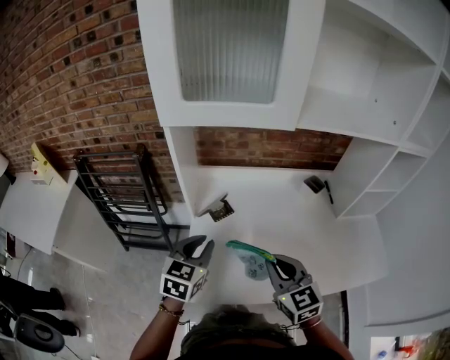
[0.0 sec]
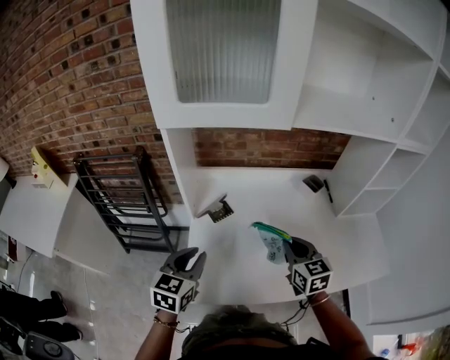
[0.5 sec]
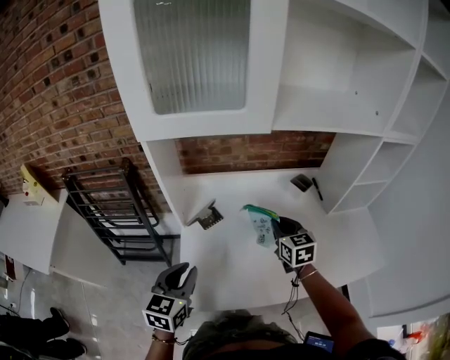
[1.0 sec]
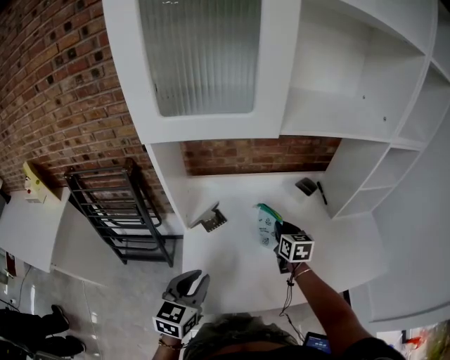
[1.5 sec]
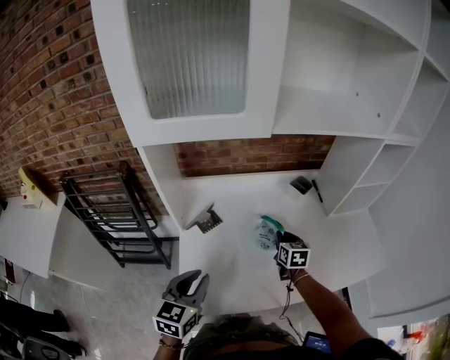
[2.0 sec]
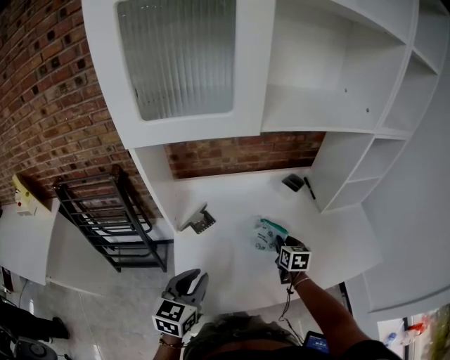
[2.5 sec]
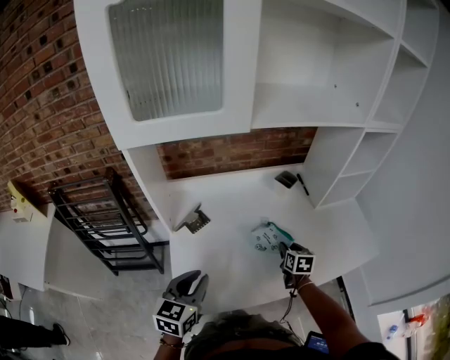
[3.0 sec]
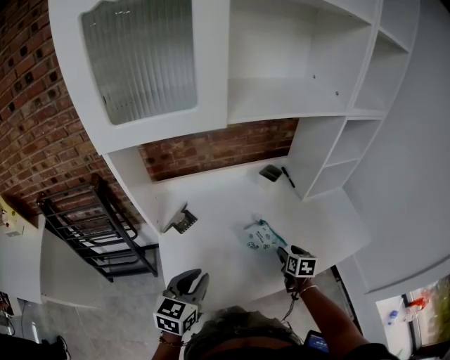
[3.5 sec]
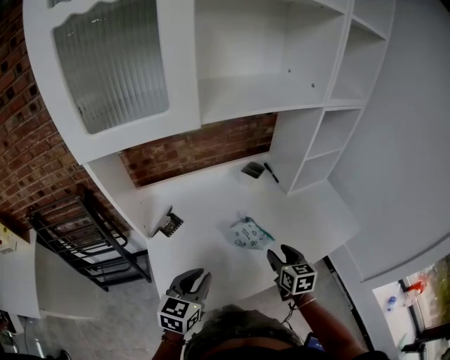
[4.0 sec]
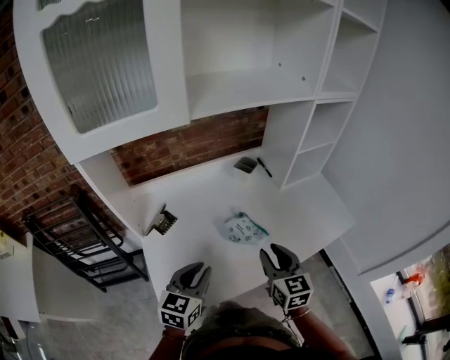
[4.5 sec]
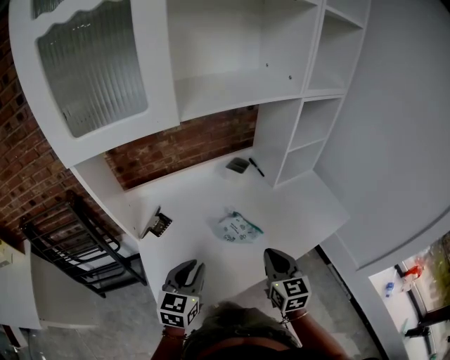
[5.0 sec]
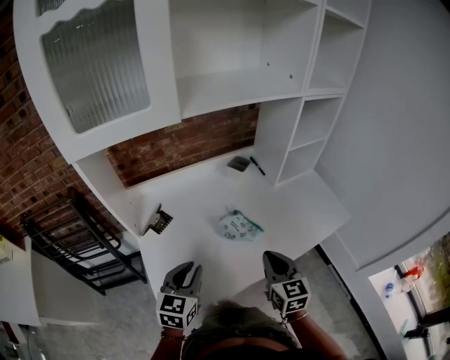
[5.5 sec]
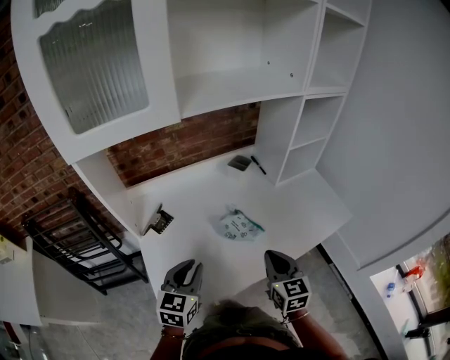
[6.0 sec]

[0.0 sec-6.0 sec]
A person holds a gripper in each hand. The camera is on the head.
0.0 sec to 2.0 sec: The left gripper shifts some 5 cm backward, while the right gripper shifts about 25 cm forward, downward and to the right, and changes its angle by some 30 degrees.
2.0 sec to 4.0 sec: The left gripper is displaced to the right by roughly 10 cm, while the right gripper moves backward and to the right, some 20 cm, and opens.
4.0 sec to 6.0 sec: The right gripper is displaced backward and upward by some 10 cm, and closes up.

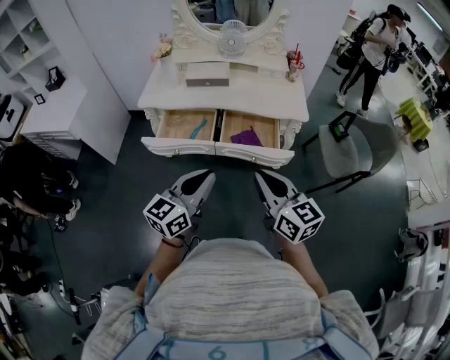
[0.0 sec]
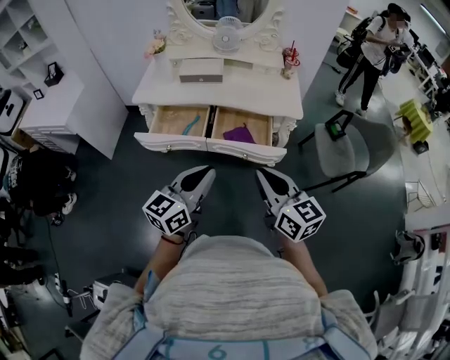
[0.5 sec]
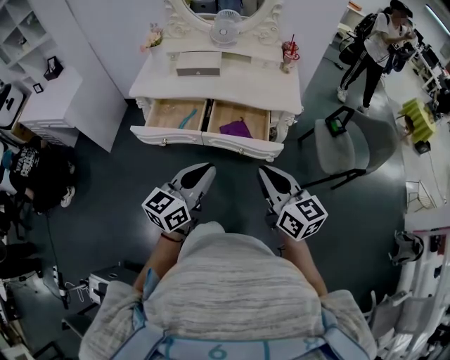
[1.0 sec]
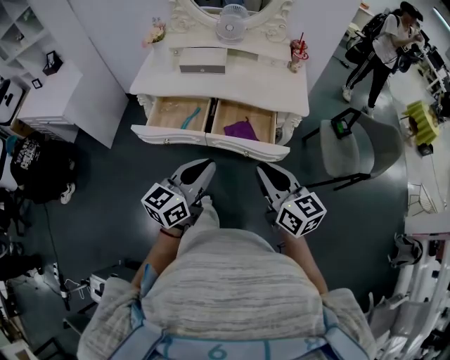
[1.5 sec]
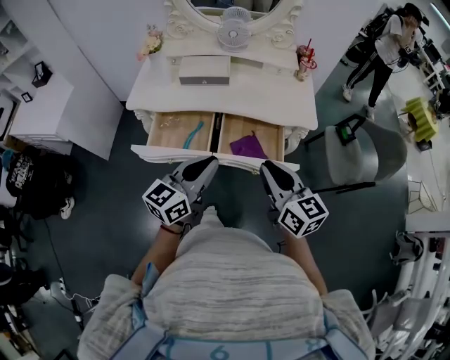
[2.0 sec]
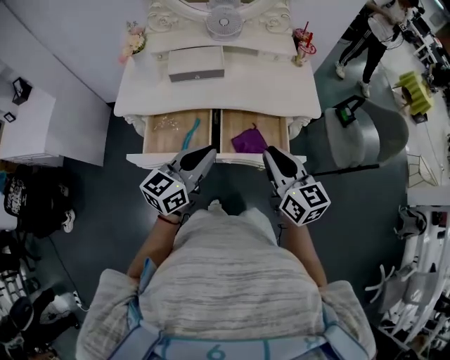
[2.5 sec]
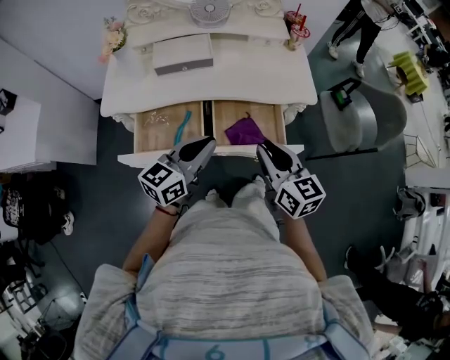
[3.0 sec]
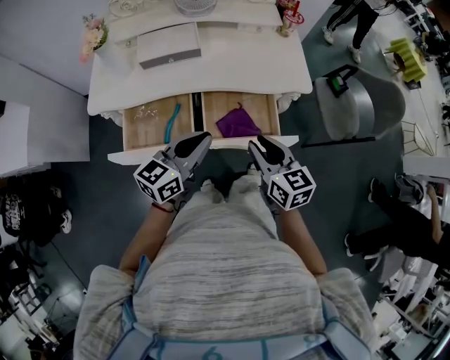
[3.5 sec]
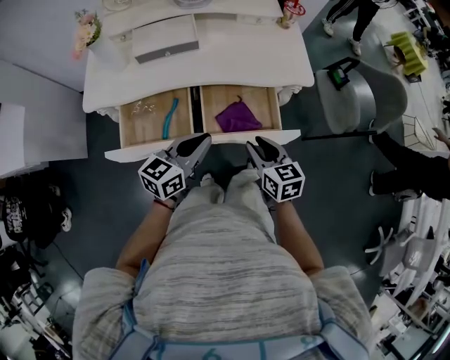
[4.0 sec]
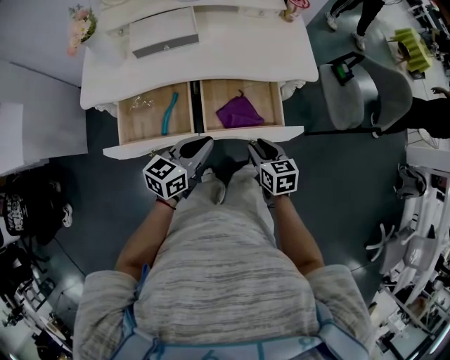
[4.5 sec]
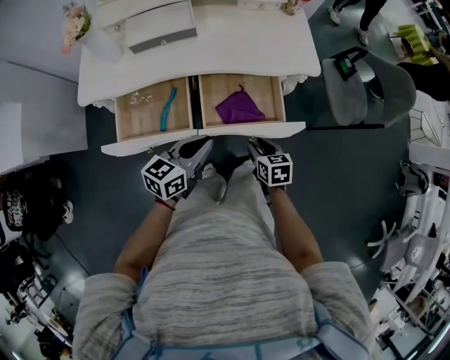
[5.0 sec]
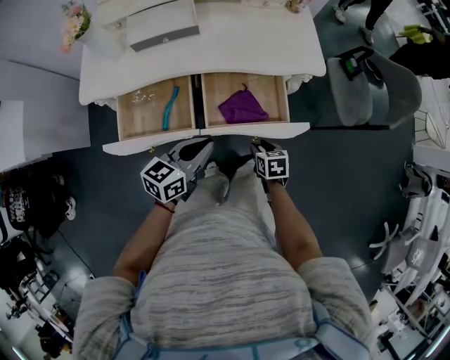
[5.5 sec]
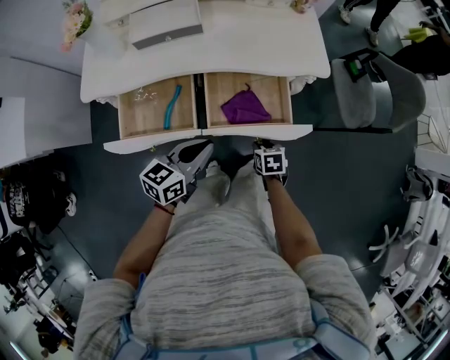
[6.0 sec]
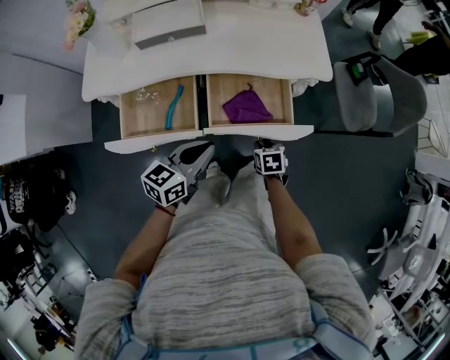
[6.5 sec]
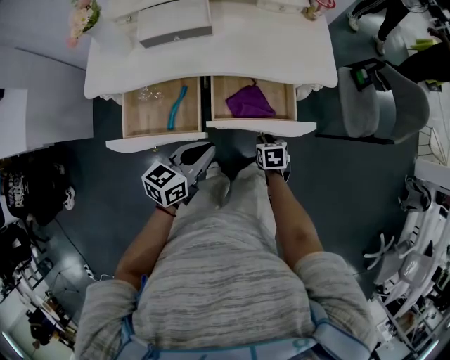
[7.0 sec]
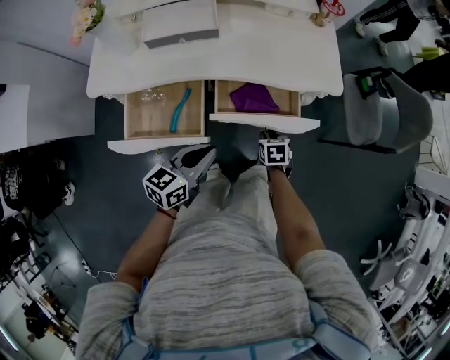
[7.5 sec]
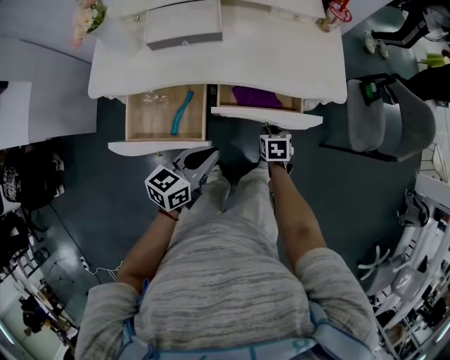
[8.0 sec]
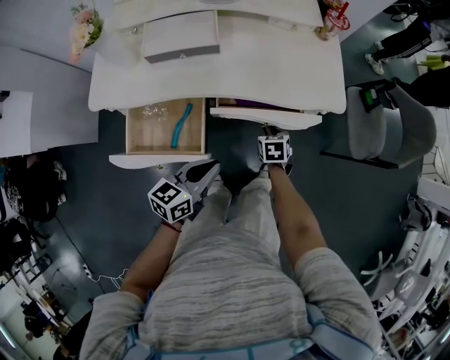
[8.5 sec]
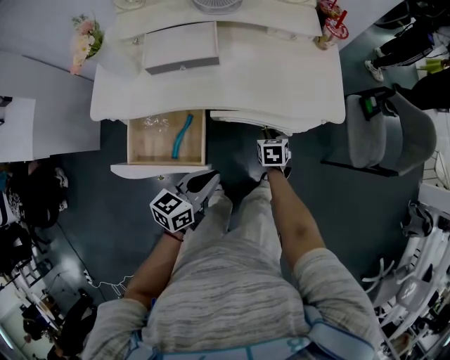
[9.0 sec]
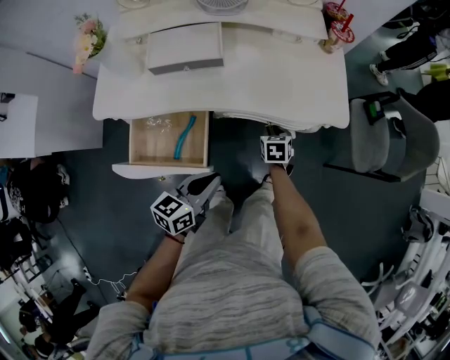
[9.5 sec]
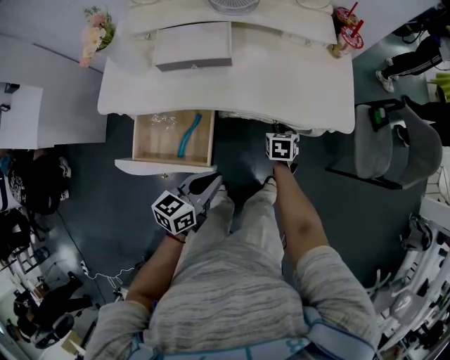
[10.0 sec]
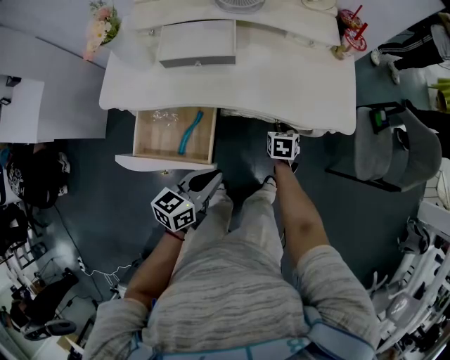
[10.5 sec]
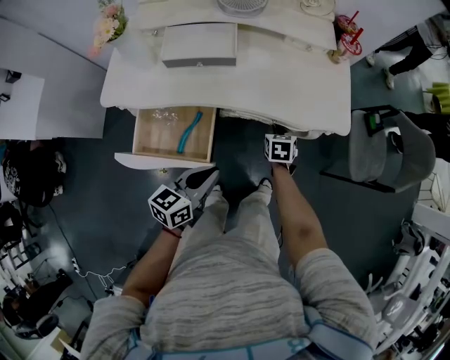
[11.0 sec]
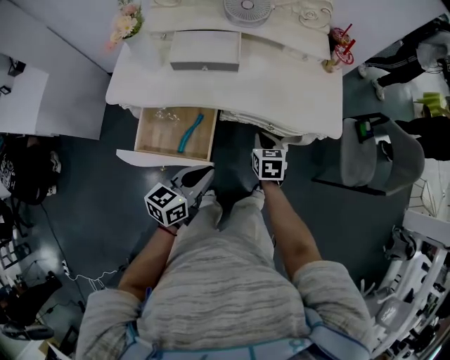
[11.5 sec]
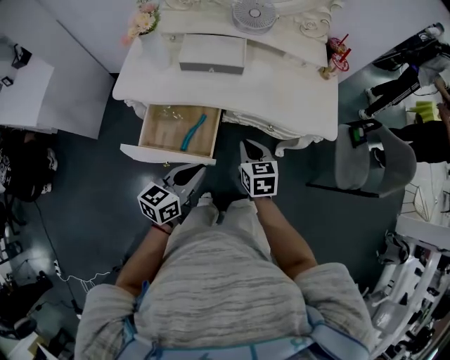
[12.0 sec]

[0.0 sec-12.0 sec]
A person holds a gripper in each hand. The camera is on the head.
0.0 sec to 2.0 sec: Both grippers travel together forward, some 15 cm.
2.0 sec to 4.0 sec: The grippers both shift downward and forward by approximately 20 cm. The right gripper turns by roughly 30 degrees, while the left gripper swivels about 20 degrees.
4.0 sec to 6.0 sec: The left gripper goes some 5 cm downward. The right gripper is displaced downward by some 20 cm, and angles its fingers downward, by some 30 degrees.
6.0 sec to 8.0 sec: The right gripper shifts approximately 10 cm forward.
8.0 sec to 10.0 sec: The right gripper moves forward, approximately 10 cm.
10.0 sec to 12.0 sec: The left gripper heads upward, to the left and backward, covering approximately 10 cm. Meanwhile the right gripper is displaced upward, backward and to the left by roughly 25 cm, and turns by about 20 degrees.

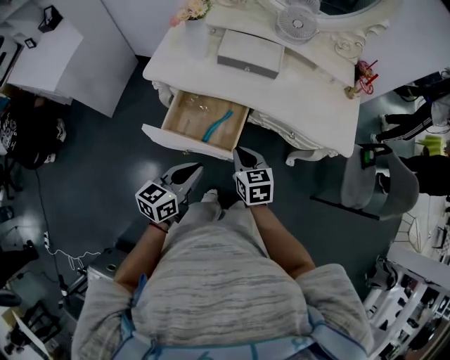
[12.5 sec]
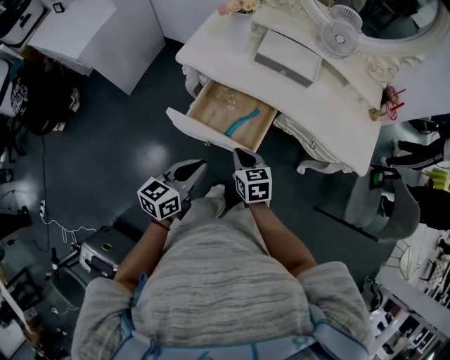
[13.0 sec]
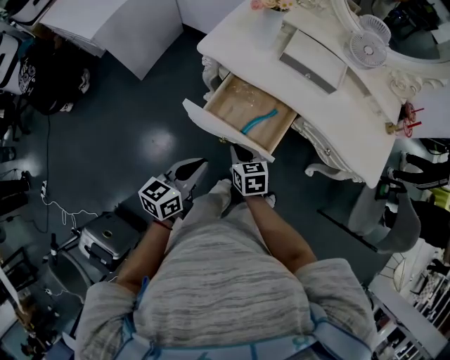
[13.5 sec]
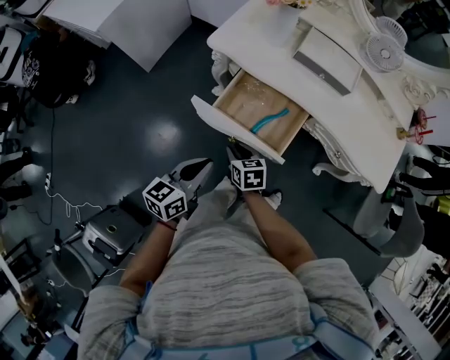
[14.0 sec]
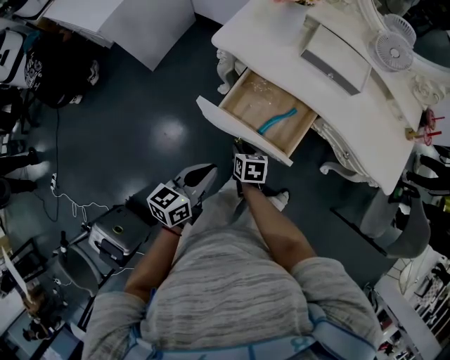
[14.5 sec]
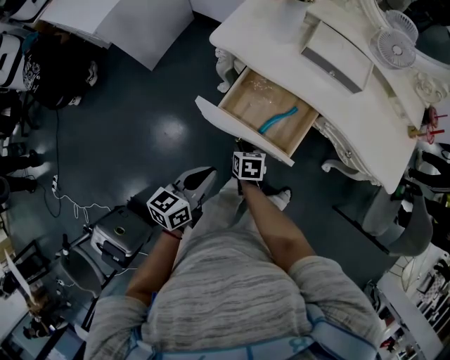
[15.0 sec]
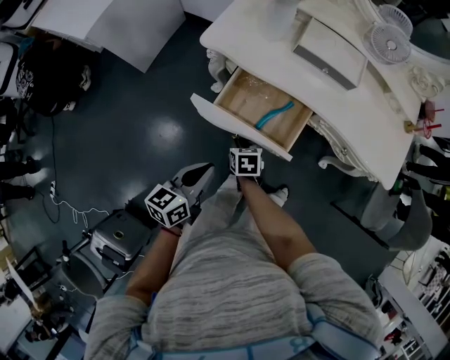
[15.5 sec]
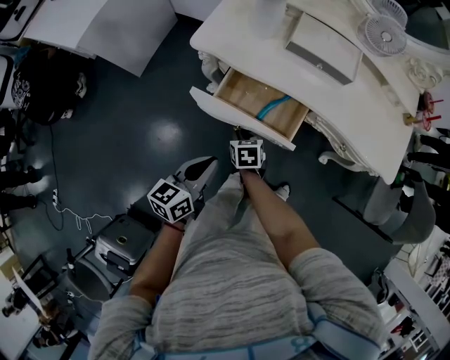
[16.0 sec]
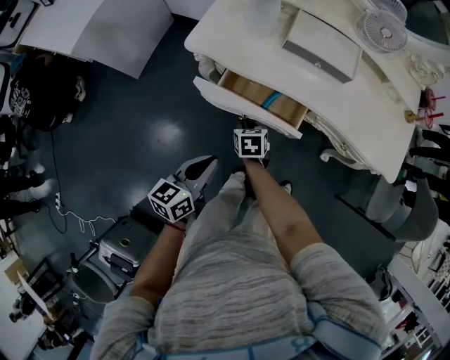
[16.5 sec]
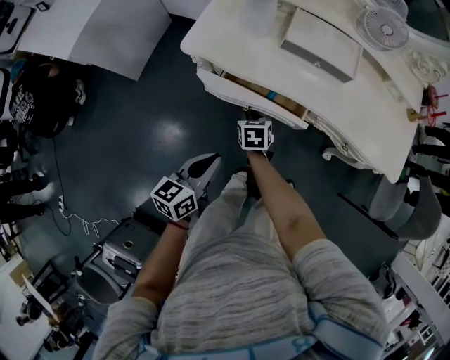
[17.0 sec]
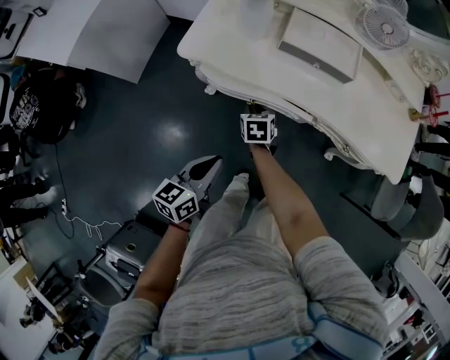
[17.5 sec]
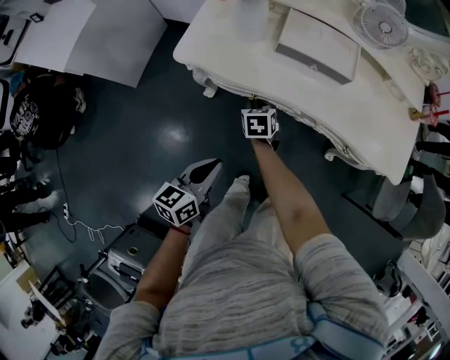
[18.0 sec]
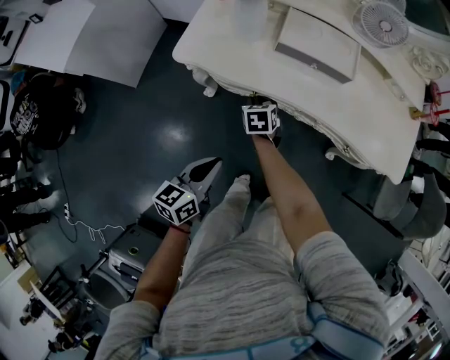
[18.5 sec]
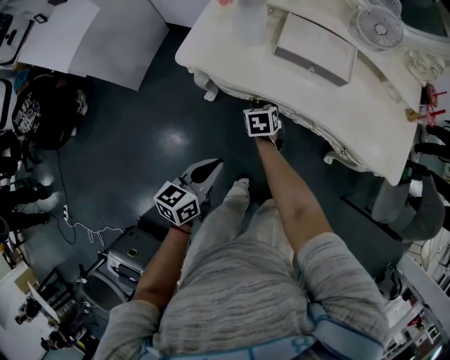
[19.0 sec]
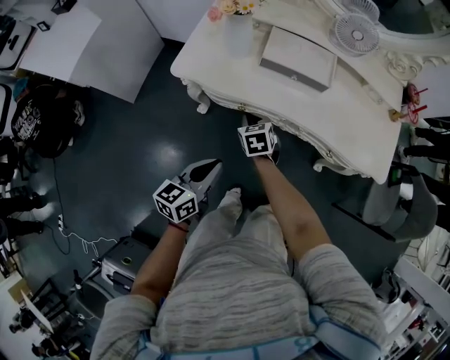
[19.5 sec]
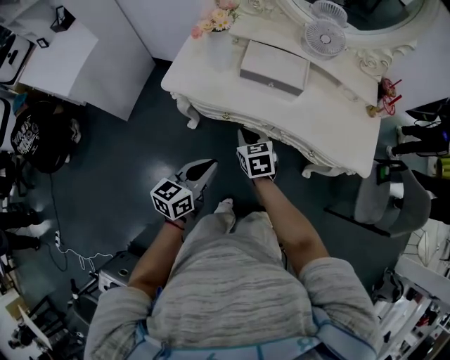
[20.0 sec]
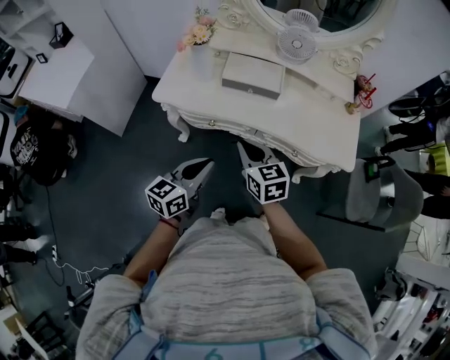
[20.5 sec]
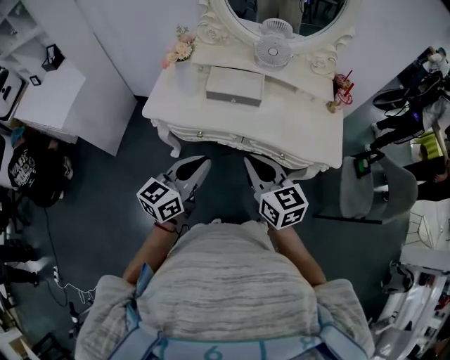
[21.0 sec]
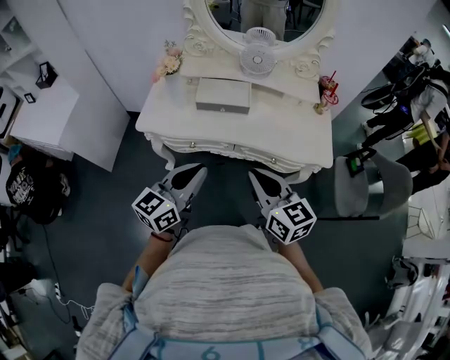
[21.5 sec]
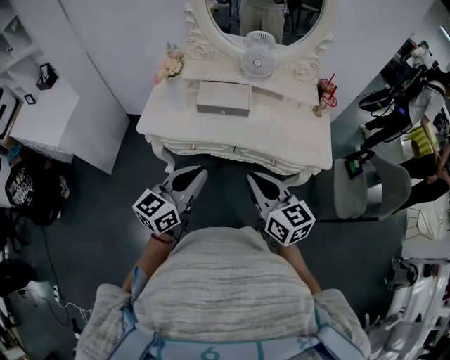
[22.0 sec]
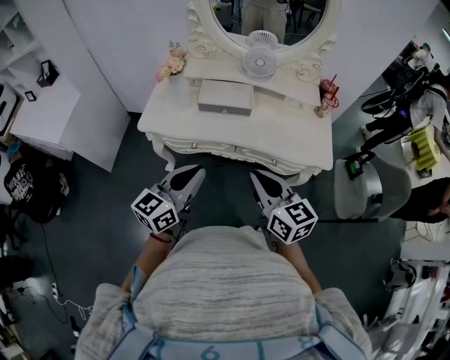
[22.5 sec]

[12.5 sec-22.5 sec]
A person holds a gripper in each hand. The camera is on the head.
12.5 sec to 14.5 sec: The right gripper travels to the left and downward by some 25 cm, changes its angle by about 20 degrees, and opens, while the left gripper goes roughly 15 cm to the left.
14.5 sec to 16.5 sec: The left gripper moves forward, about 5 cm. The right gripper heads forward, covering some 10 cm.
16.5 sec to 18.5 sec: The right gripper moves forward, some 10 cm.
18.5 sec to 20.5 sec: The right gripper shifts about 35 cm upward, backward and to the right, and turns by approximately 30 degrees. The left gripper shifts roughly 15 cm upward and to the right.
20.5 sec to 22.5 sec: The left gripper heads upward, covering some 10 cm, while the right gripper is displaced upward, to the right and backward by about 15 cm.
